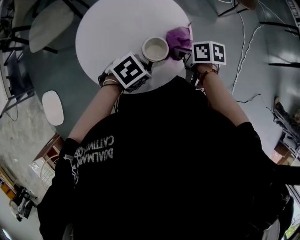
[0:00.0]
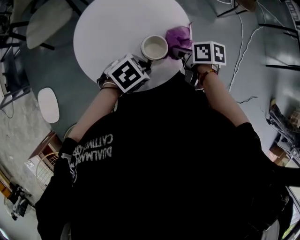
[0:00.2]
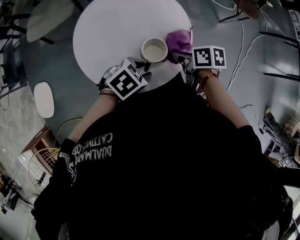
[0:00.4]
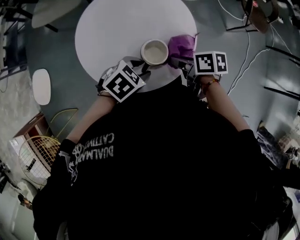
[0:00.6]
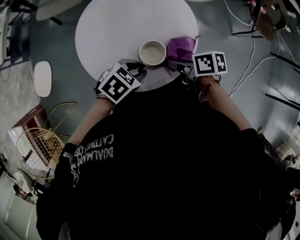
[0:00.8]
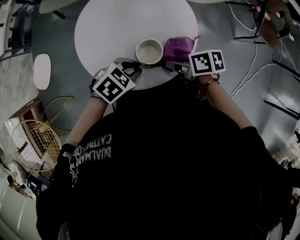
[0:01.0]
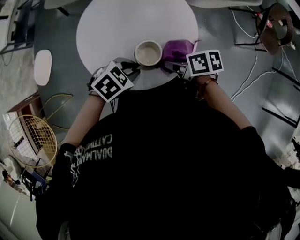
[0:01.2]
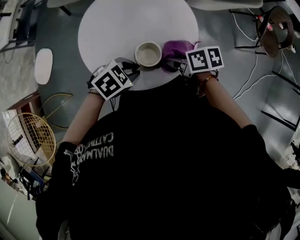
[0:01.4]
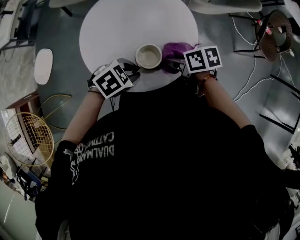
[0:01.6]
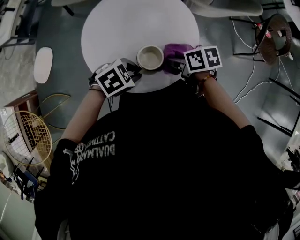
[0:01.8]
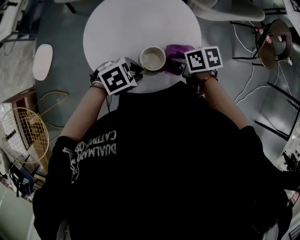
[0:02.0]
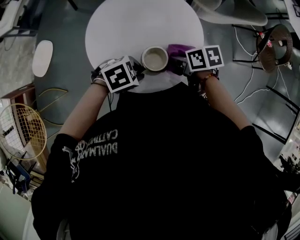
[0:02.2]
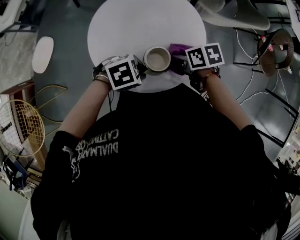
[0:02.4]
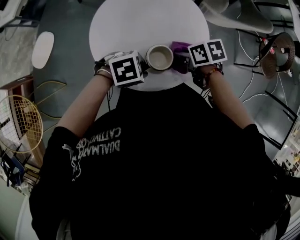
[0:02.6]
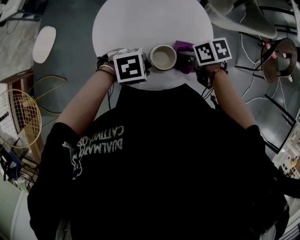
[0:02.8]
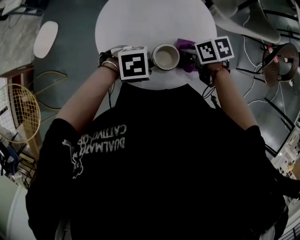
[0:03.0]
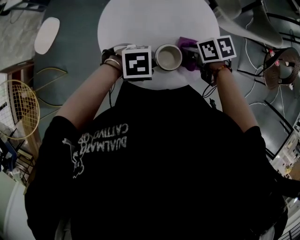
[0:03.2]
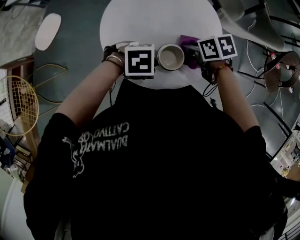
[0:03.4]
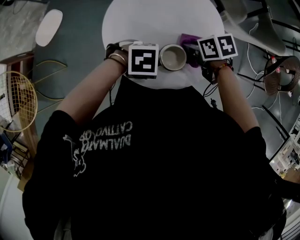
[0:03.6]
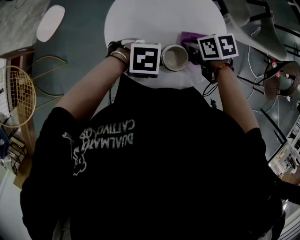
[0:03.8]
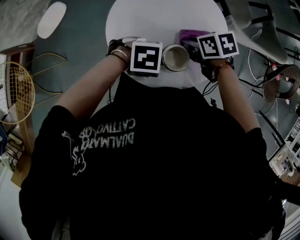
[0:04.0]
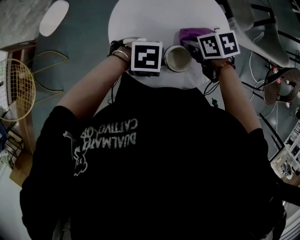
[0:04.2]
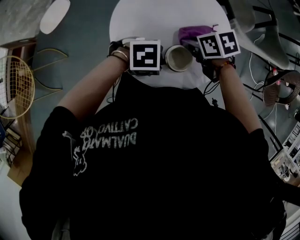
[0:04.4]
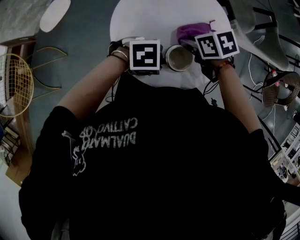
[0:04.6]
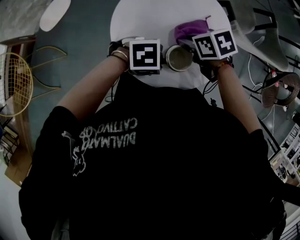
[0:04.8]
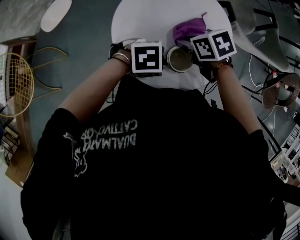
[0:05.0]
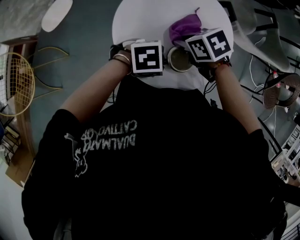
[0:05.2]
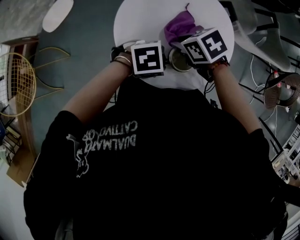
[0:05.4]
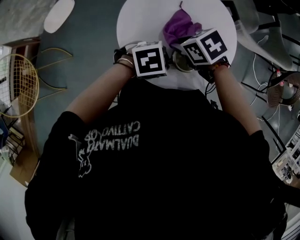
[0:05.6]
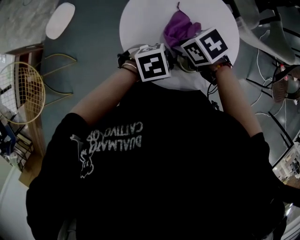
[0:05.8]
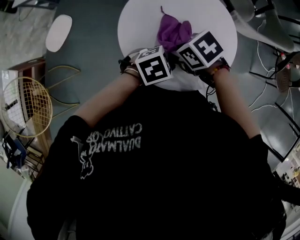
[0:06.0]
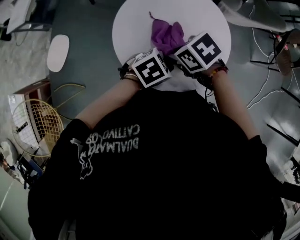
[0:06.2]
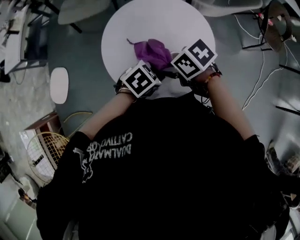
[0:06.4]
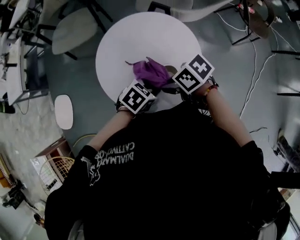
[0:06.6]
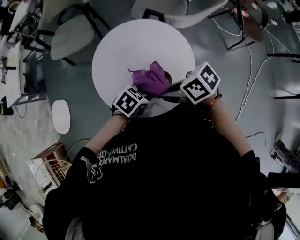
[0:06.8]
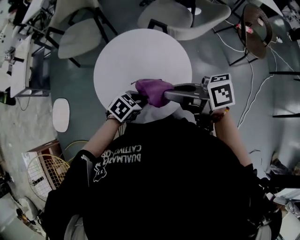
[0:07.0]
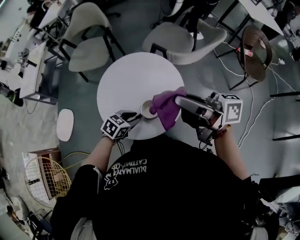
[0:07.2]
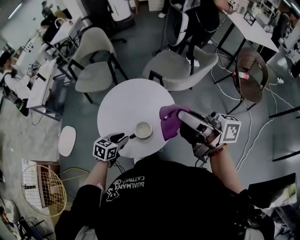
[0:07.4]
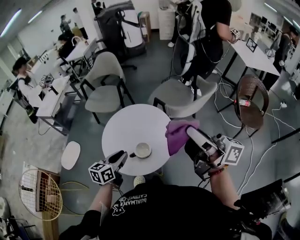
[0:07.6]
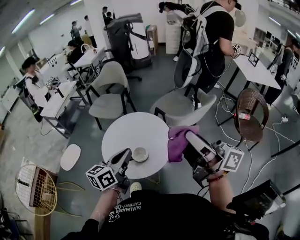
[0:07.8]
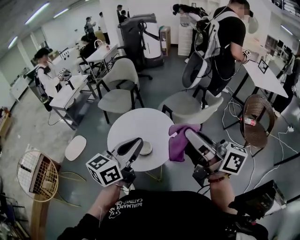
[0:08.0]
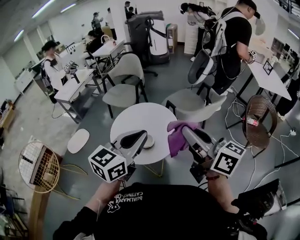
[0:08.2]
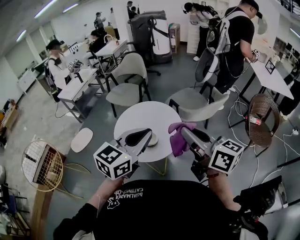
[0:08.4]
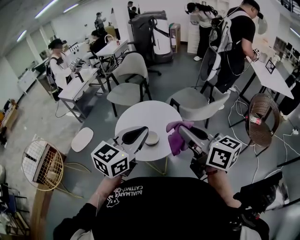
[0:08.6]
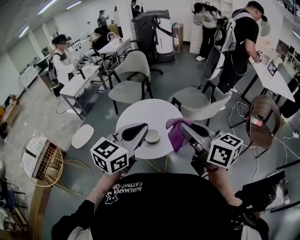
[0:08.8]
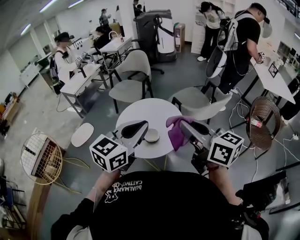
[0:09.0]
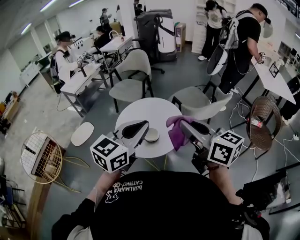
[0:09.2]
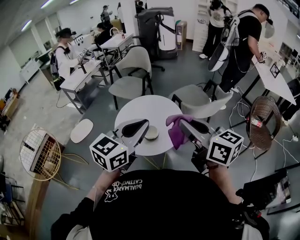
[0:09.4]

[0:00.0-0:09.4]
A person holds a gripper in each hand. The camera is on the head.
0:00.0 to 0:01.6: The right gripper swivels roughly 40 degrees. The left gripper turns by roughly 20 degrees, and opens, then closes once more.
0:01.6 to 0:03.2: The right gripper ends up some 10 cm from where it was, and swivels some 20 degrees.
0:03.2 to 0:04.8: The right gripper shifts about 10 cm to the right.
0:04.8 to 0:06.2: The right gripper moves roughly 10 cm.
0:06.2 to 0:07.8: Both grippers move upward, roughly 35 cm. The right gripper points its fingers approximately 90 degrees further upward. The left gripper tilts its fingers about 50 degrees upward.
0:07.8 to 0:09.4: The left gripper is displaced upward and backward by approximately 15 cm, and rotates approximately 30 degrees; the right gripper heads to the left, covering approximately 5 cm, and rotates about 40 degrees.

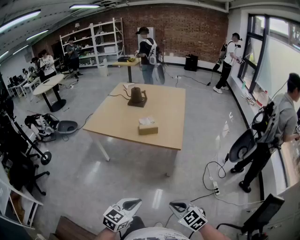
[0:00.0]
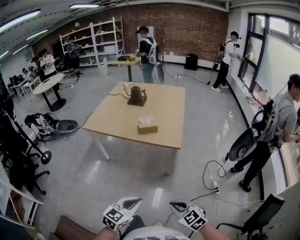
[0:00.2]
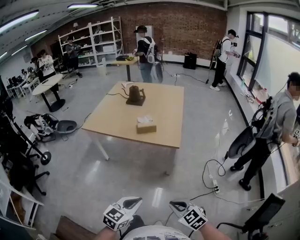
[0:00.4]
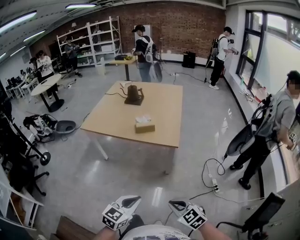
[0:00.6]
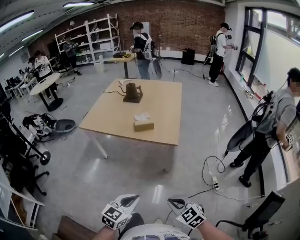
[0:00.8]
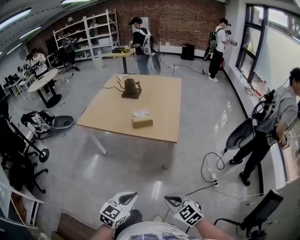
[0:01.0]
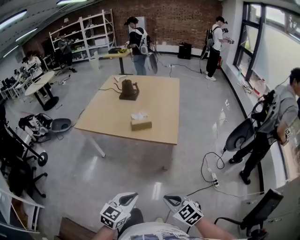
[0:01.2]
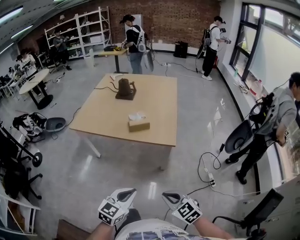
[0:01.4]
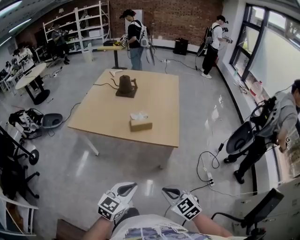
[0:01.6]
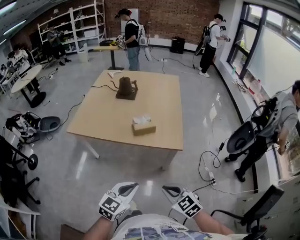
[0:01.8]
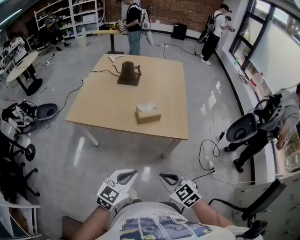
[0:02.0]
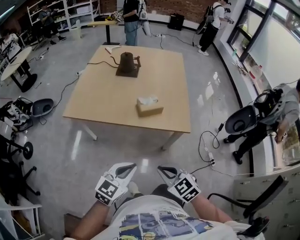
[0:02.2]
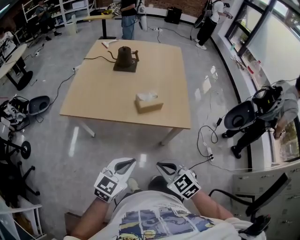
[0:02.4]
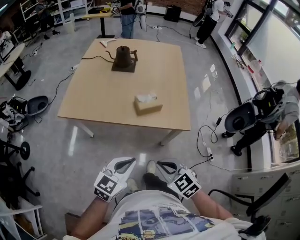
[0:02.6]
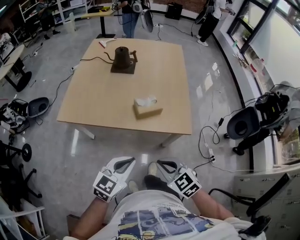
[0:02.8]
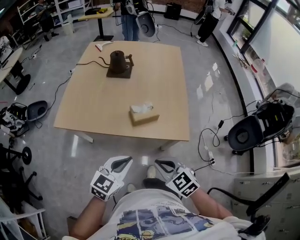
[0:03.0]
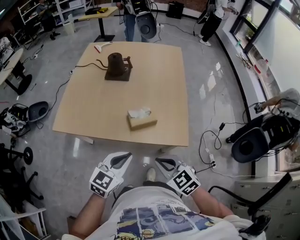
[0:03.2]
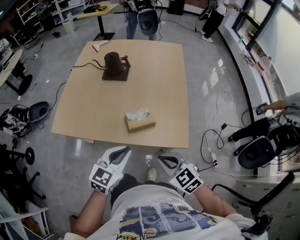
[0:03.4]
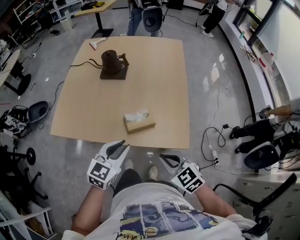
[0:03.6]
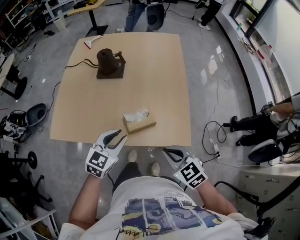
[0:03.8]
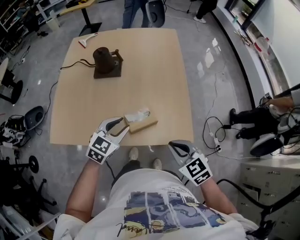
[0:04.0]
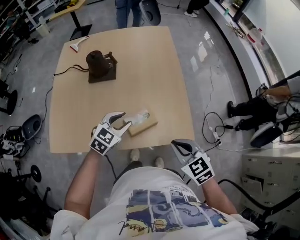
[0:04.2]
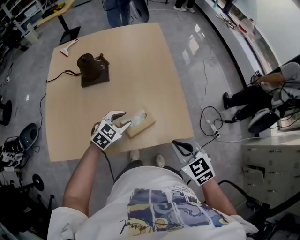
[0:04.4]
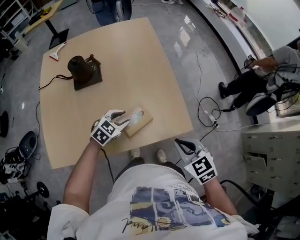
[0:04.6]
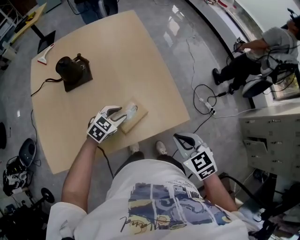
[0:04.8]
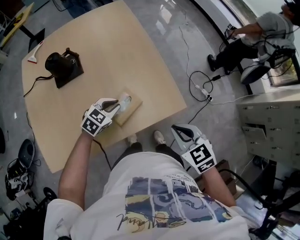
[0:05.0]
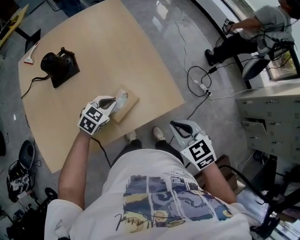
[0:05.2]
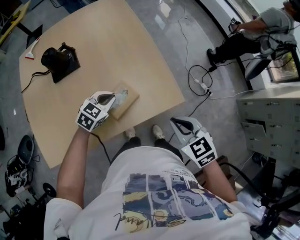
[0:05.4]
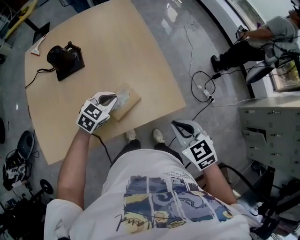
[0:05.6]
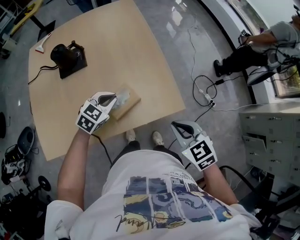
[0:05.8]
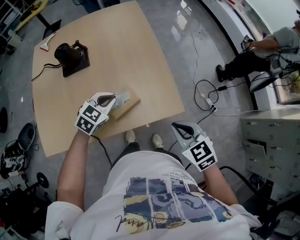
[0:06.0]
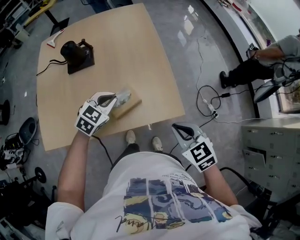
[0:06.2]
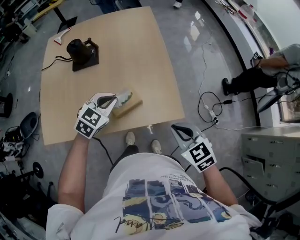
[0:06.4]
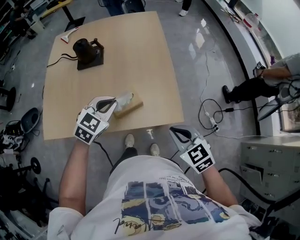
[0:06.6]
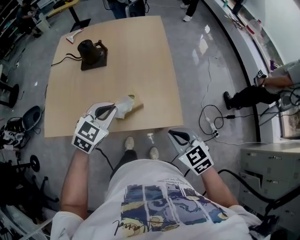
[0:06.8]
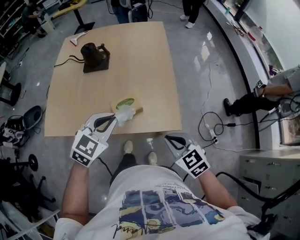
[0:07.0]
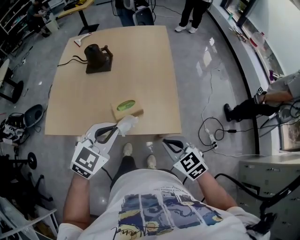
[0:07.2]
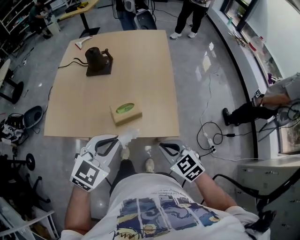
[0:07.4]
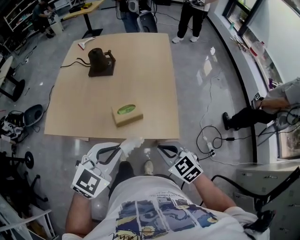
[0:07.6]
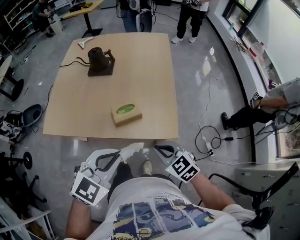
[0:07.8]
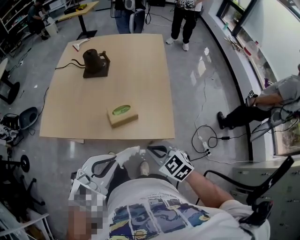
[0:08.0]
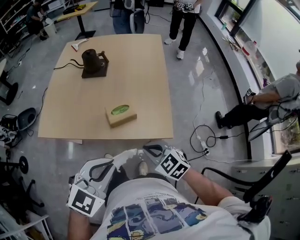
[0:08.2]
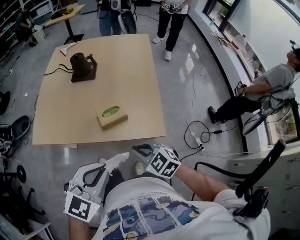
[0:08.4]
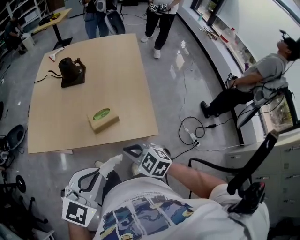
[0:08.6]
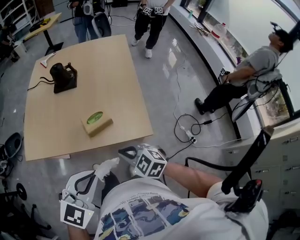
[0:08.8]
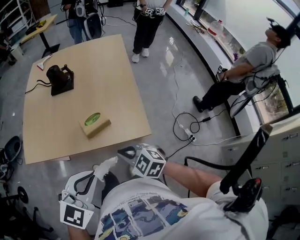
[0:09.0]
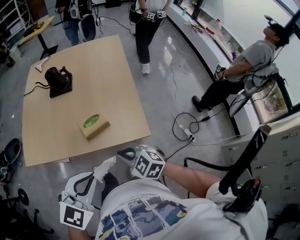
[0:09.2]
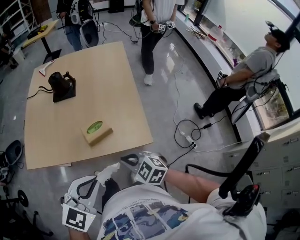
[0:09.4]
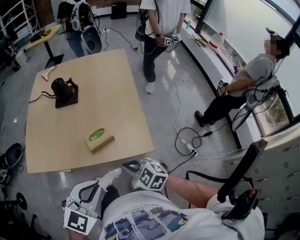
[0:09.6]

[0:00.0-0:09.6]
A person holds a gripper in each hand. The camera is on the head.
0:00.0 to 0:01.6: The two grippers go approximately 15 cm forward.
0:01.6 to 0:03.2: Both grippers move forward, some 30 cm.
0:03.2 to 0:04.8: The right gripper moves about 10 cm, and swivels roughly 40 degrees. Meanwhile the left gripper changes place by some 30 cm, changes its angle by some 40 degrees, and opens its fingers.
0:04.8 to 0:06.4: The left gripper heads upward, covering roughly 10 cm, and closes up. Meanwhile the right gripper goes roughly 5 cm to the right.
0:06.4 to 0:08.0: The left gripper is displaced backward and upward by approximately 25 cm. The right gripper heads to the left, covering roughly 5 cm, and rotates roughly 20 degrees.
0:08.0 to 0:09.6: The grippers make only small movements.

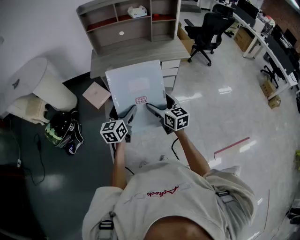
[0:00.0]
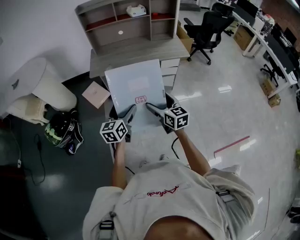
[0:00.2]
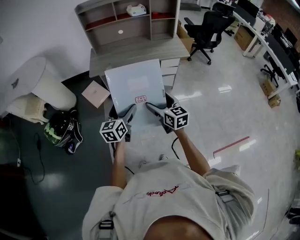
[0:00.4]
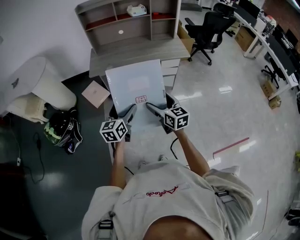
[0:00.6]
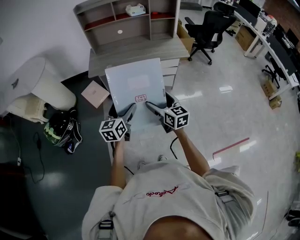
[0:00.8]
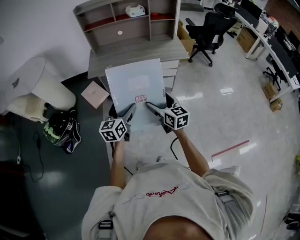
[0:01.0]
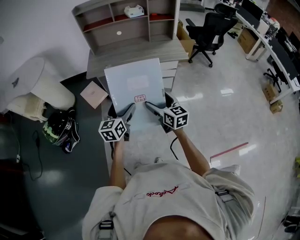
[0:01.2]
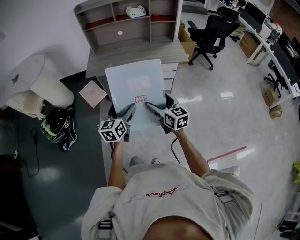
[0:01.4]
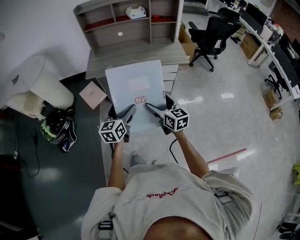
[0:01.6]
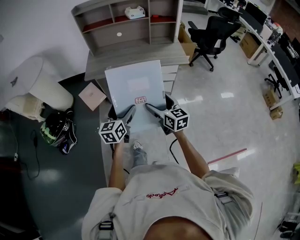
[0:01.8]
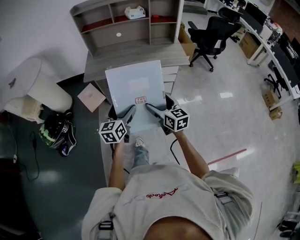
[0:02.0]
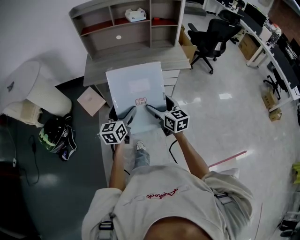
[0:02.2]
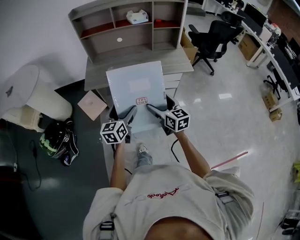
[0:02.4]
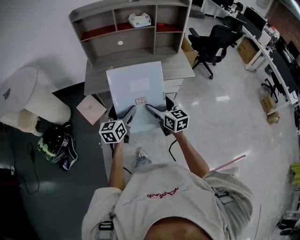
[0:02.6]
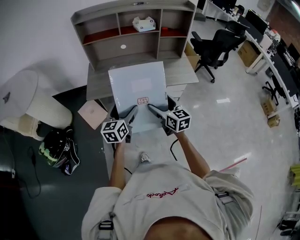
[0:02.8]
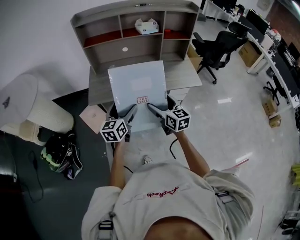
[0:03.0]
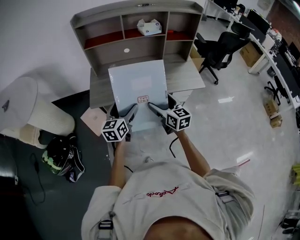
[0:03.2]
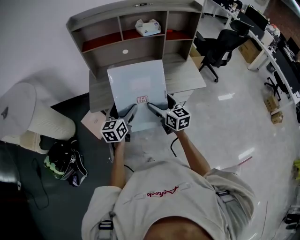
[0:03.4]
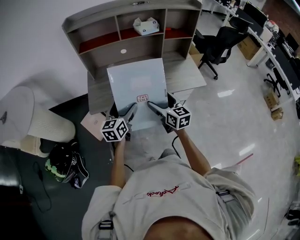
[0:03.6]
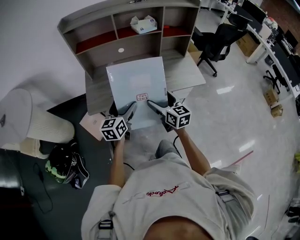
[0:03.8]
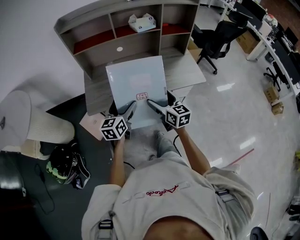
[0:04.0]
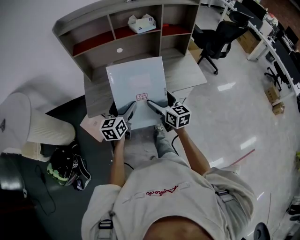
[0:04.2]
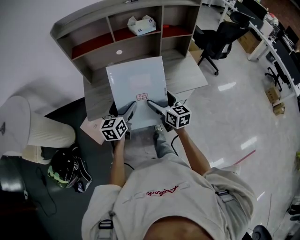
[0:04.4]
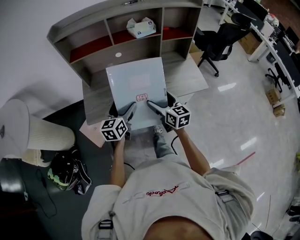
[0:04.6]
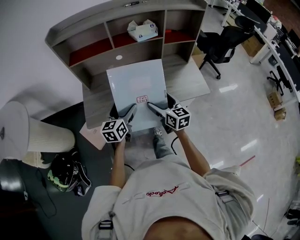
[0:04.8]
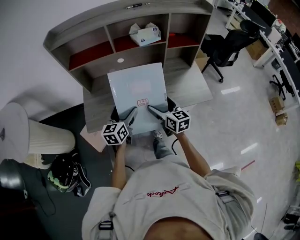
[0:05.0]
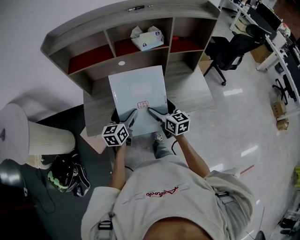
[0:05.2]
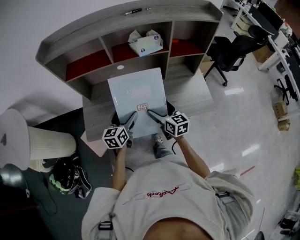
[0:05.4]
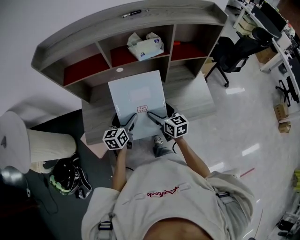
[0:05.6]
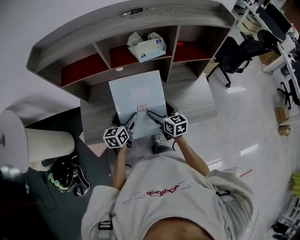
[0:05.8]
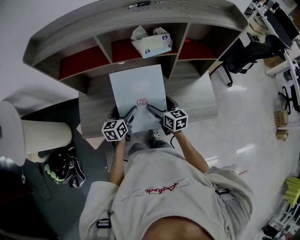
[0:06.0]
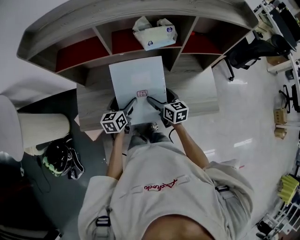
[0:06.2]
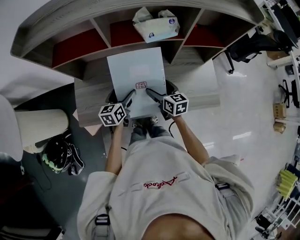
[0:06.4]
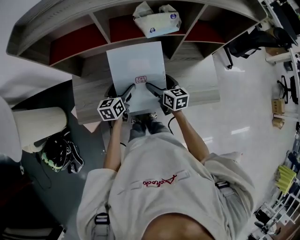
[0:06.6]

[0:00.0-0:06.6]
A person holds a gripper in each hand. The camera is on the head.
0:00.0 to 0:01.6: The left gripper is displaced to the right by about 10 cm, while the right gripper heads to the right and forward, covering approximately 10 cm.
0:01.6 to 0:03.2: The two grippers go roughly 30 cm forward.
0:03.2 to 0:05.0: The grippers both shift forward by about 20 cm.
0:05.0 to 0:06.6: The grippers both shift forward and downward by roughly 20 cm.
